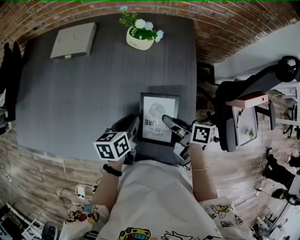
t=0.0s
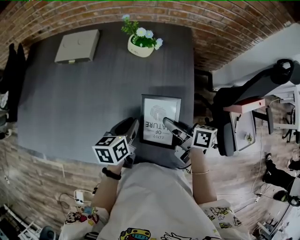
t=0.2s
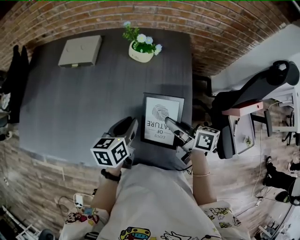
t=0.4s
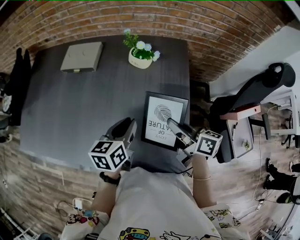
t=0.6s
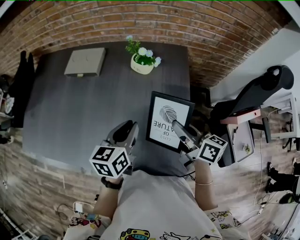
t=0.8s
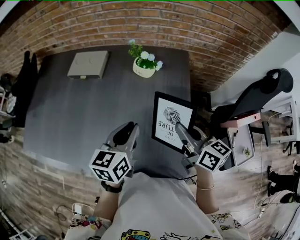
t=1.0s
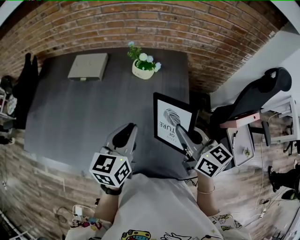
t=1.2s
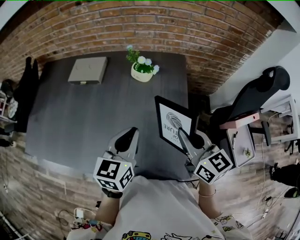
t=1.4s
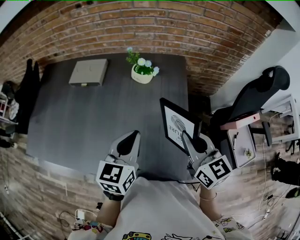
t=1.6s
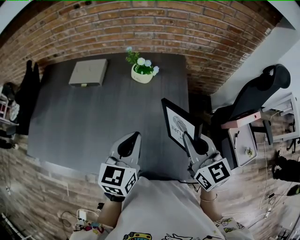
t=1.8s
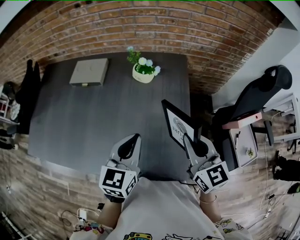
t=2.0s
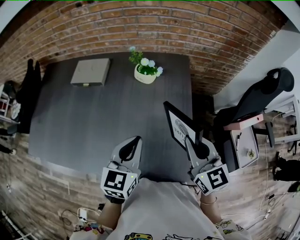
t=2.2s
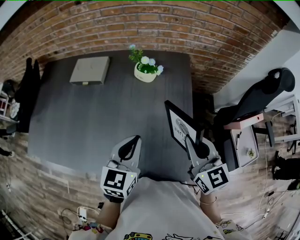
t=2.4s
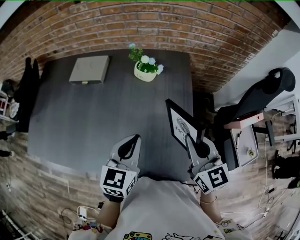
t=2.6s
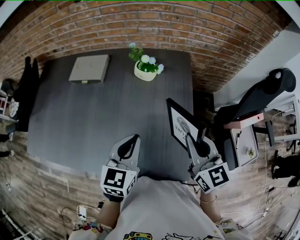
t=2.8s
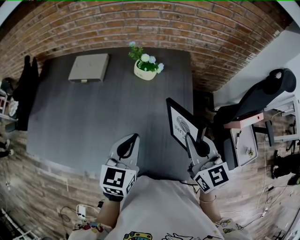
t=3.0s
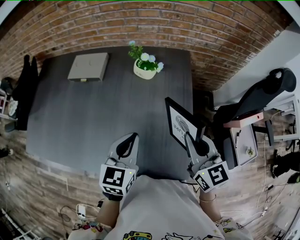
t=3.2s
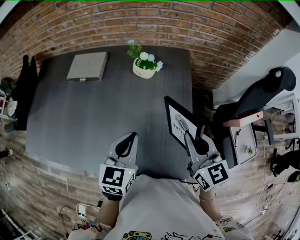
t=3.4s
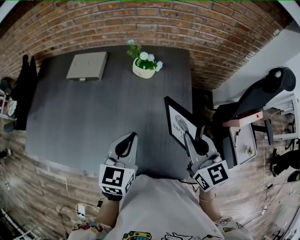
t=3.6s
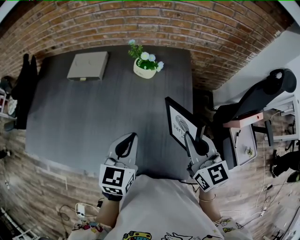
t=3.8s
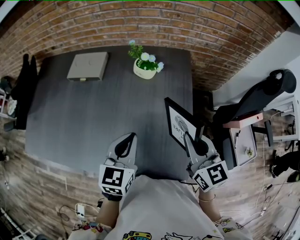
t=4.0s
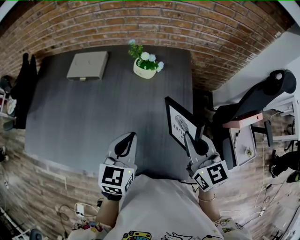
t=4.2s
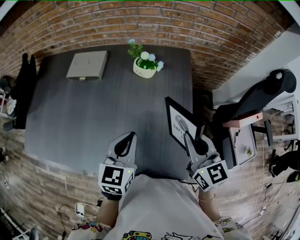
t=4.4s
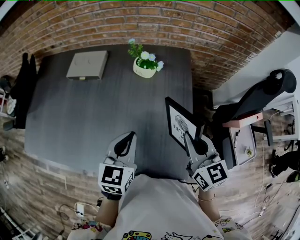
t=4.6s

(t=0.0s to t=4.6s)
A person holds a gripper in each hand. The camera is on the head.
t=0.0s - t=1.6s: The grippers both shift upward by about 20 cm. The right gripper rotates around the line of its fingers by roughly 60 degrees, counterclockwise from behind. The left gripper rotates some 40 degrees, and closes its fingers.
t=1.6s - t=3.0s: The grippers move only a little.
t=3.0s - t=4.6s: Both grippers stay put.

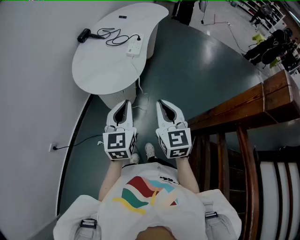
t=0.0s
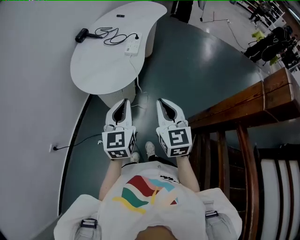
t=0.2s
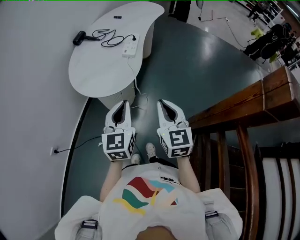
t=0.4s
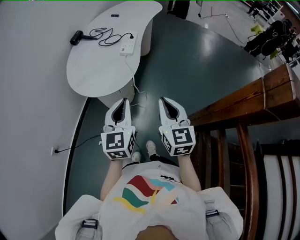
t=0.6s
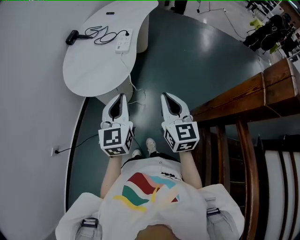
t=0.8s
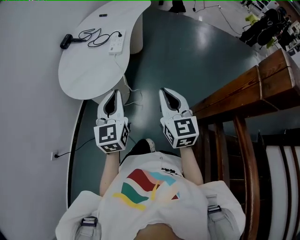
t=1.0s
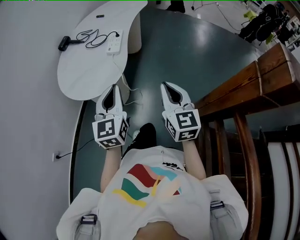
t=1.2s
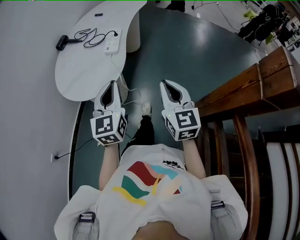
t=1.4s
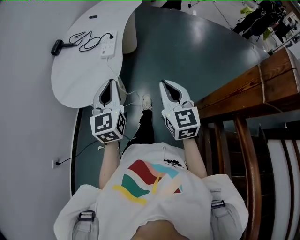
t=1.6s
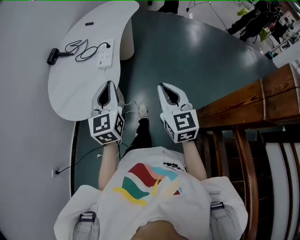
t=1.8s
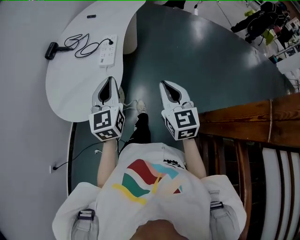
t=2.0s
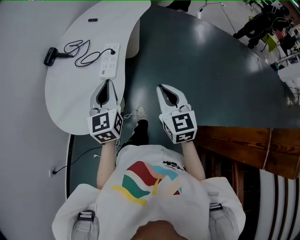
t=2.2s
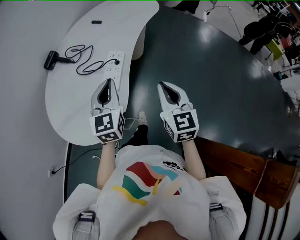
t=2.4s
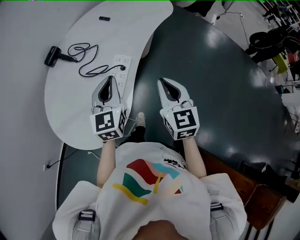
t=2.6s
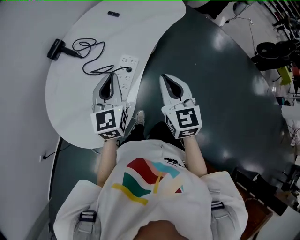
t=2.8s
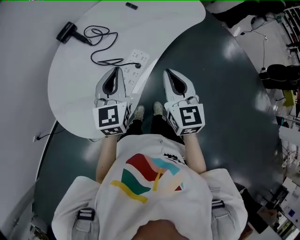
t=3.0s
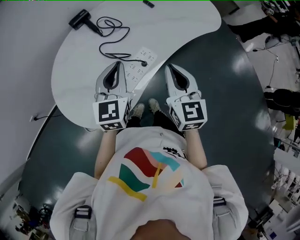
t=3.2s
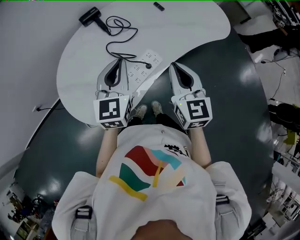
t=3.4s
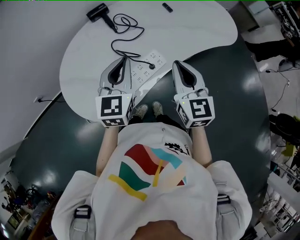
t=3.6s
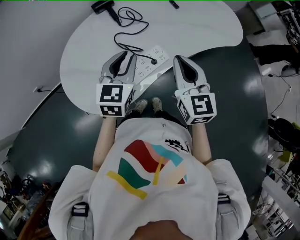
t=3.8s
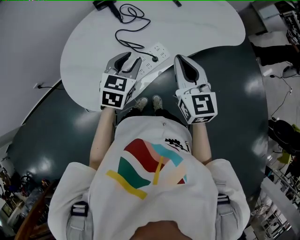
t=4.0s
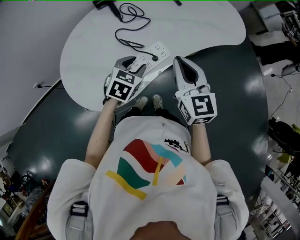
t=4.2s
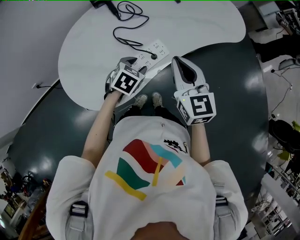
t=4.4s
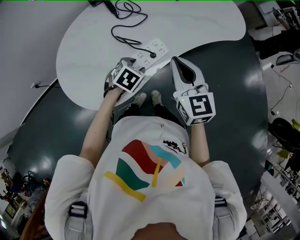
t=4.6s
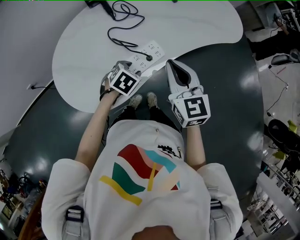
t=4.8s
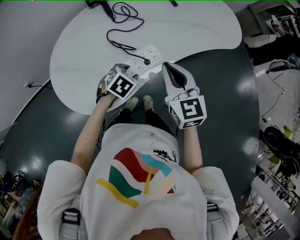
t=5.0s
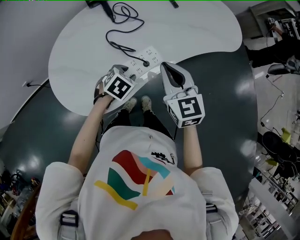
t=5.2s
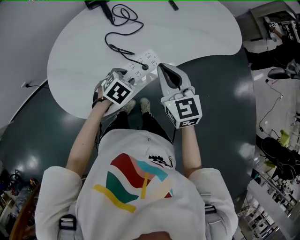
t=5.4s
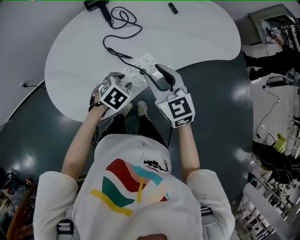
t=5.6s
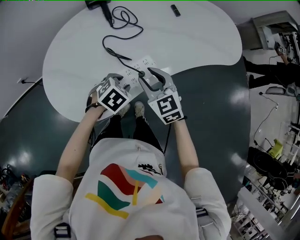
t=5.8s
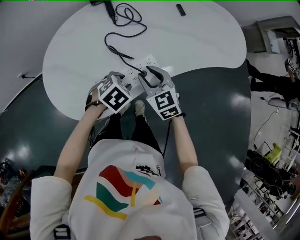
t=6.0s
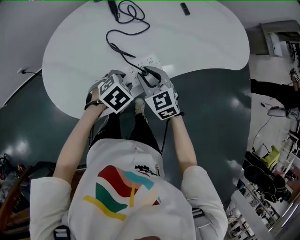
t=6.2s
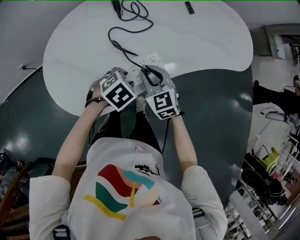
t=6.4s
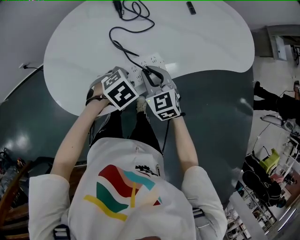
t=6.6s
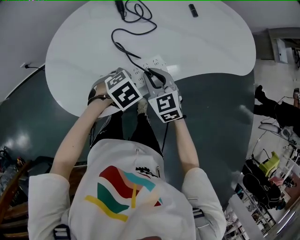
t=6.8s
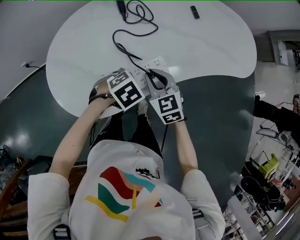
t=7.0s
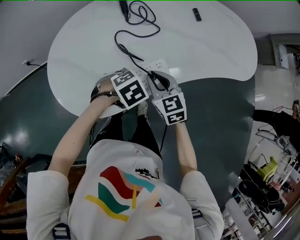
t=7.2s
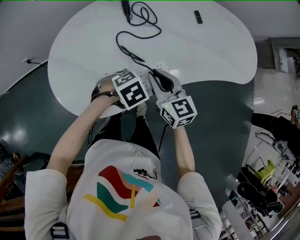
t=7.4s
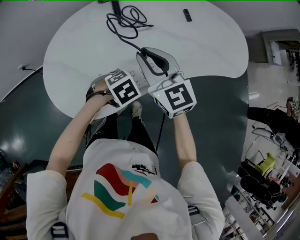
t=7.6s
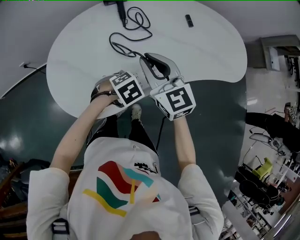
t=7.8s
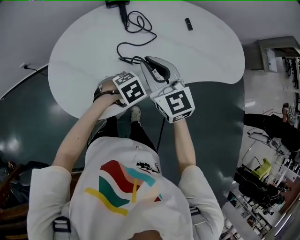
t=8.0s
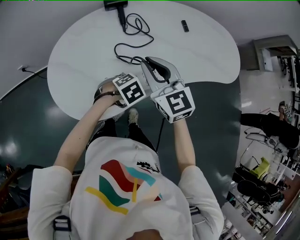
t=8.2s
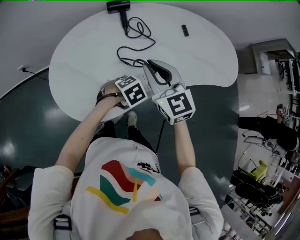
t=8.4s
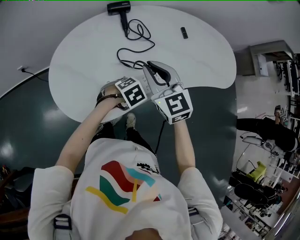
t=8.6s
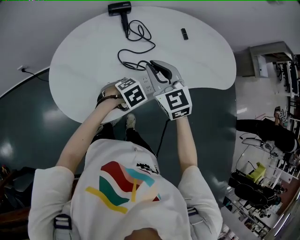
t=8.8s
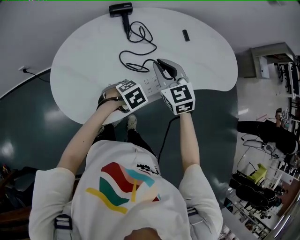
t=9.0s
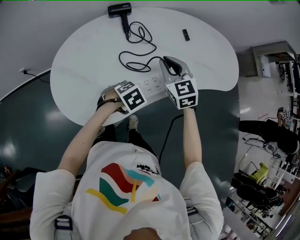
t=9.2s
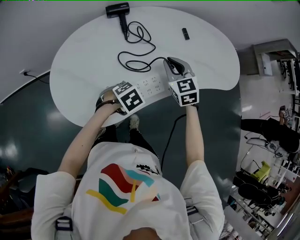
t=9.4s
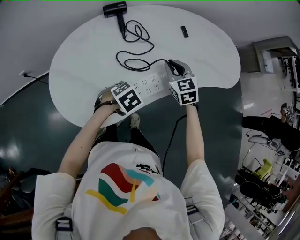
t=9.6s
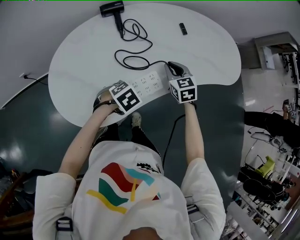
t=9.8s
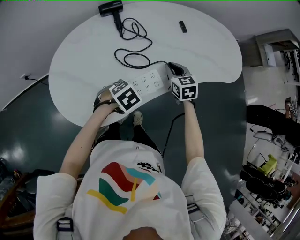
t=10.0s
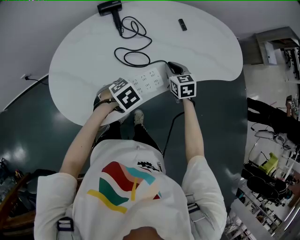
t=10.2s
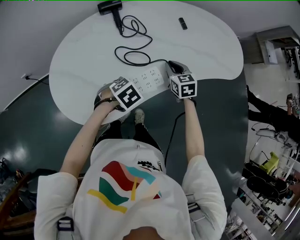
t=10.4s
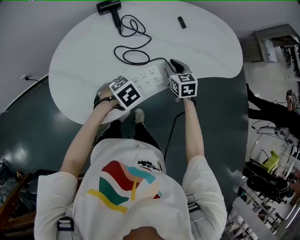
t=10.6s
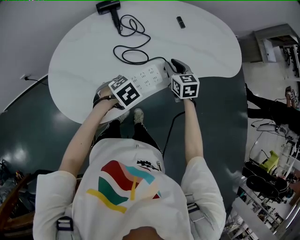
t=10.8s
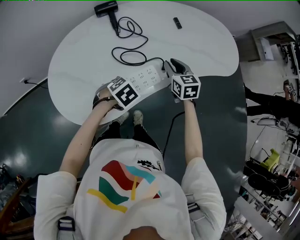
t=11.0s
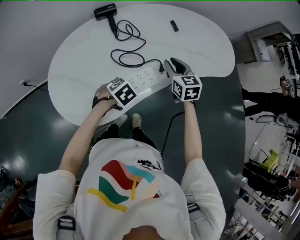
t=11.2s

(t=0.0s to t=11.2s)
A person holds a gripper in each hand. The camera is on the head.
t=0.0s - t=1.6s: The right gripper travels to the right and forward by roughly 15 cm. Meanwhile the left gripper is displaced forward and to the right by some 15 cm.
t=1.6s - t=3.2s: The right gripper changes place by approximately 40 cm, and swivels approximately 30 degrees. The left gripper ends up approximately 35 cm from where it was, and rotates some 30 degrees.
t=3.2s - t=4.8s: The left gripper travels downward by roughly 20 cm, points its fingers roughly 50 degrees further downward, and opens up.
t=4.8s - t=6.4s: The right gripper travels downward and to the left by some 15 cm, and swivels roughly 30 degrees.
t=6.4s - t=8.0s: The right gripper heads upward, covering approximately 15 cm.
t=8.0s - t=9.6s: The right gripper ends up approximately 15 cm from where it was, and changes its angle by approximately 20 degrees.
t=9.6s - t=11.2s: The right gripper moves about 5 cm downward and comes back.

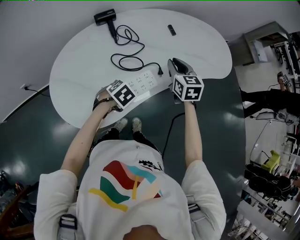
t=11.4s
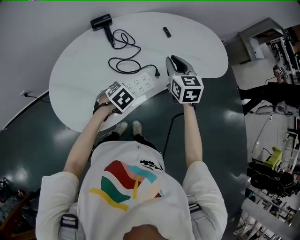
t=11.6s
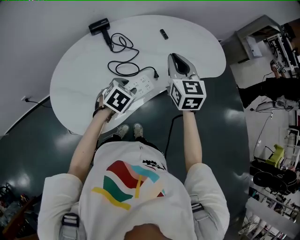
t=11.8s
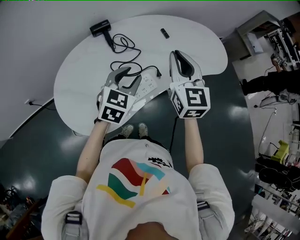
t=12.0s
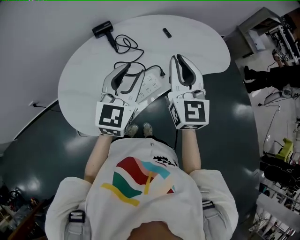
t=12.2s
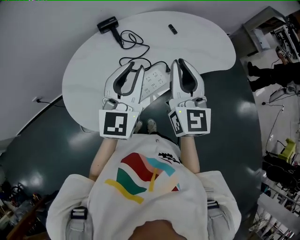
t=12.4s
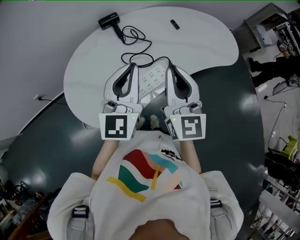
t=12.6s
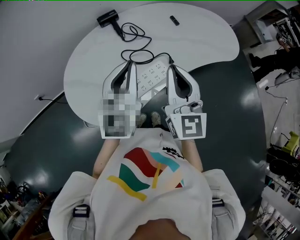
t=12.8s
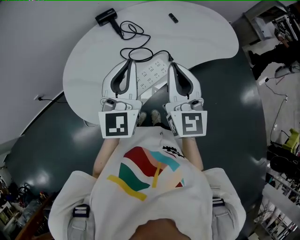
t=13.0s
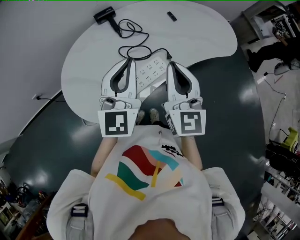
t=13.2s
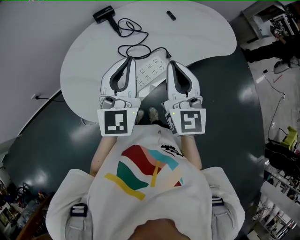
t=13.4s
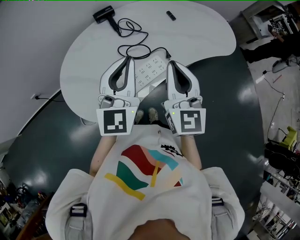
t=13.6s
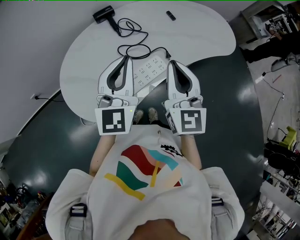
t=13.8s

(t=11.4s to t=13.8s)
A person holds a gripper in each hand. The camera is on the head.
t=11.4s - t=12.6s: The left gripper heads upward, covering some 30 cm, points its fingers roughly 70 degrees further upward, and closes its fingers, while the right gripper travels upward and backward by roughly 25 cm, and tips its fingers upward by some 30 degrees.
t=12.6s - t=13.8s: The grippers move only a little.

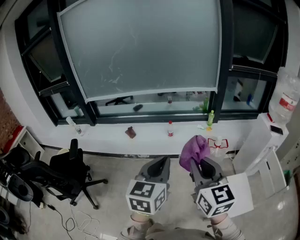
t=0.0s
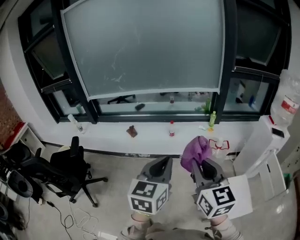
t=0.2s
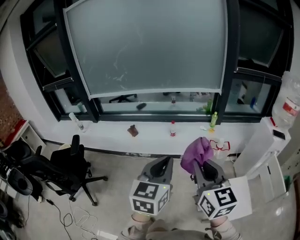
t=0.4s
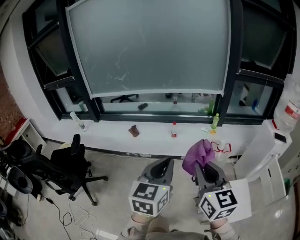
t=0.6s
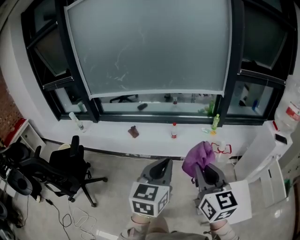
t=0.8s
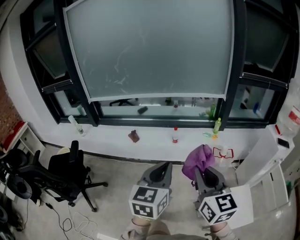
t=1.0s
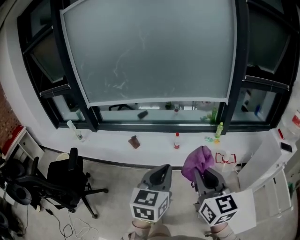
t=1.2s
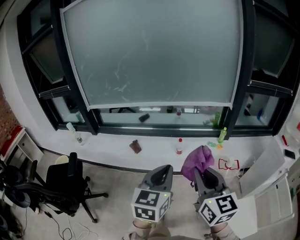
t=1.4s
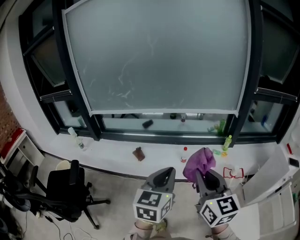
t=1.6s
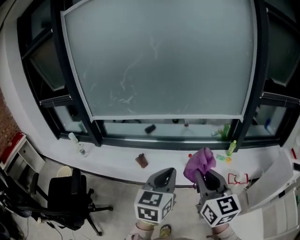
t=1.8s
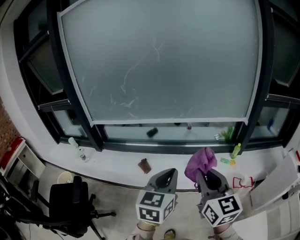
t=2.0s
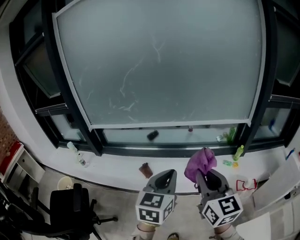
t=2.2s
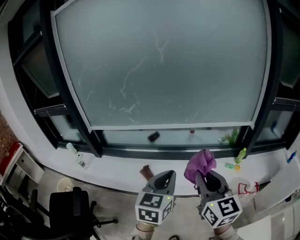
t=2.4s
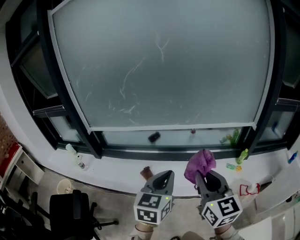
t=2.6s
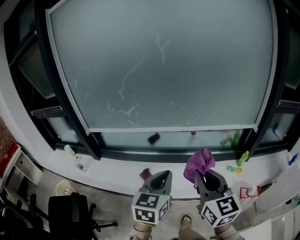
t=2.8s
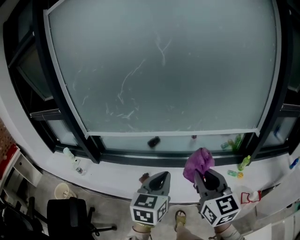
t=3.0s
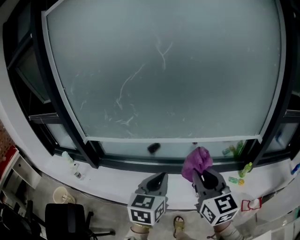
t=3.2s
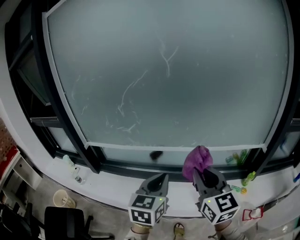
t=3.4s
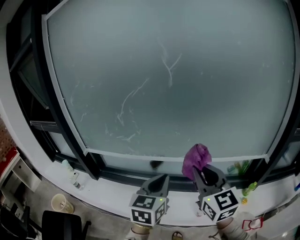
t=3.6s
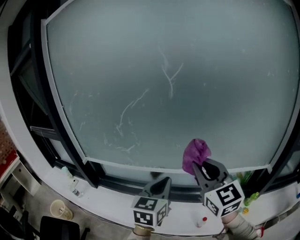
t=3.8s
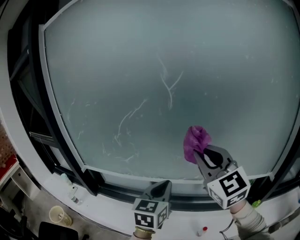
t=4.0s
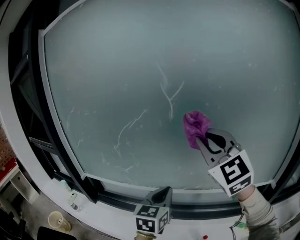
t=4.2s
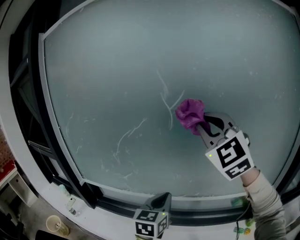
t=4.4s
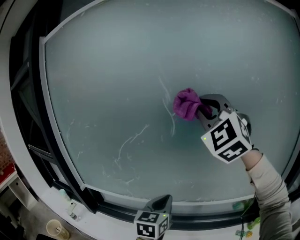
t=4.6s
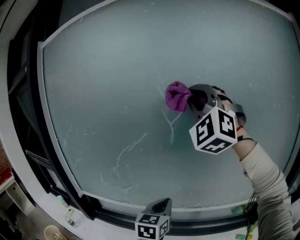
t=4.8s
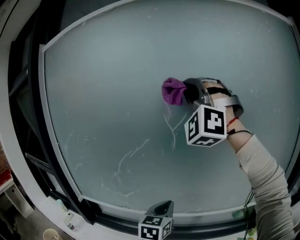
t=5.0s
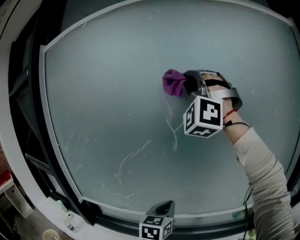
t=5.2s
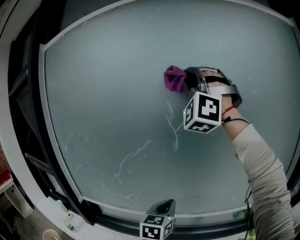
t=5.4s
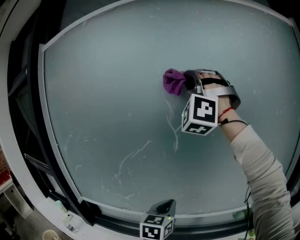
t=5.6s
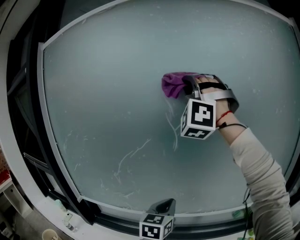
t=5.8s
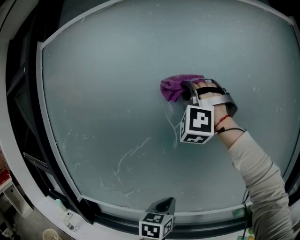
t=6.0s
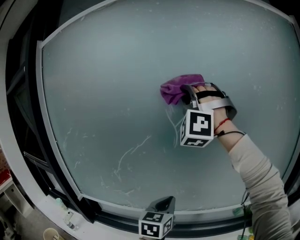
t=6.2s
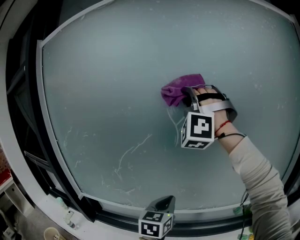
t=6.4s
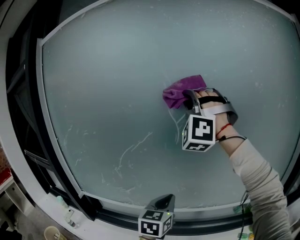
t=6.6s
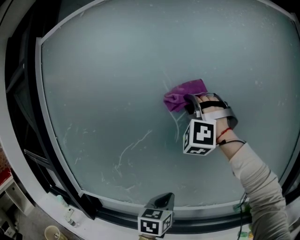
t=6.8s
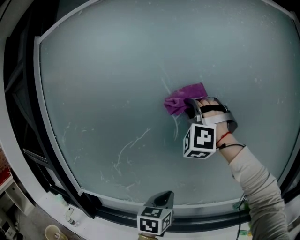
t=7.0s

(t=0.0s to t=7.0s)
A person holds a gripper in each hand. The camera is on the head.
t=0.0s - t=1.4s: The left gripper goes about 15 cm forward and to the left. The right gripper heads forward, covering some 15 cm.
t=1.4s - t=2.8s: The two grippers go roughly 35 cm forward and to the left.
t=2.8s - t=4.2s: The right gripper travels forward and upward by roughly 40 cm, and turns by approximately 40 degrees, while the left gripper travels forward by approximately 35 cm.
t=4.2s - t=5.6s: The right gripper shifts approximately 30 cm upward and forward, and twists about 60 degrees counterclockwise, seen from behind. The left gripper is displaced forward by approximately 5 cm.
t=5.6s - t=7.0s: The right gripper moves downward, approximately 15 cm.
